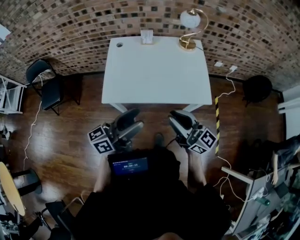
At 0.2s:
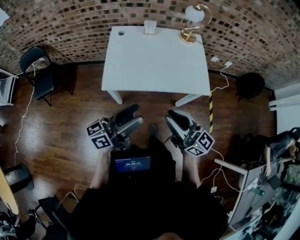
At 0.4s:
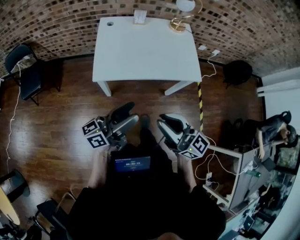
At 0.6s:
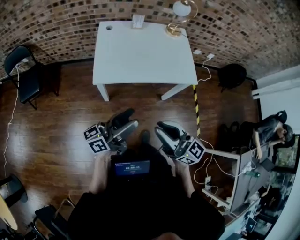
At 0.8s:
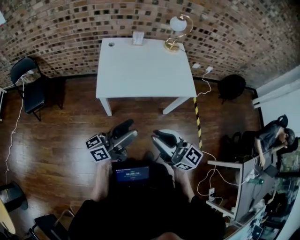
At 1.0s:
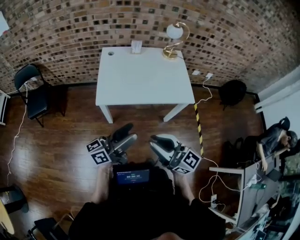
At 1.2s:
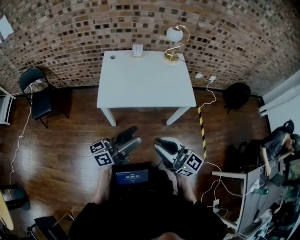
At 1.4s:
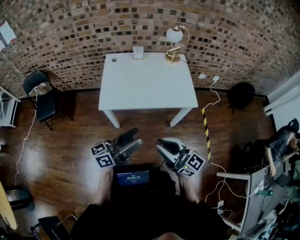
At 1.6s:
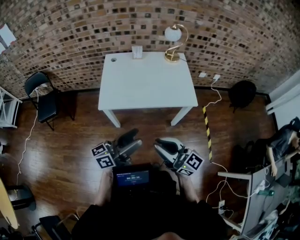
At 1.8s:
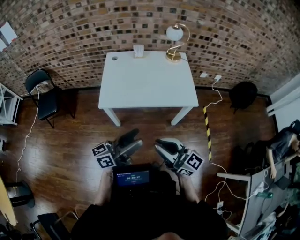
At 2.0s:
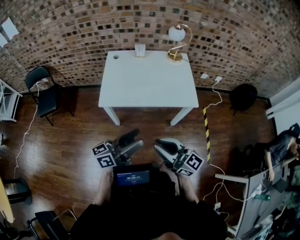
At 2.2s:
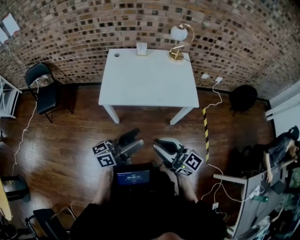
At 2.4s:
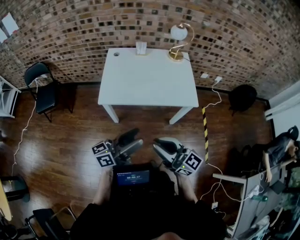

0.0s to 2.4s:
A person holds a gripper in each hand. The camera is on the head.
0.0s to 1.2s: Both grippers move backward, about 15 cm.
1.2s to 2.4s: There are only small adjustments of the grippers.

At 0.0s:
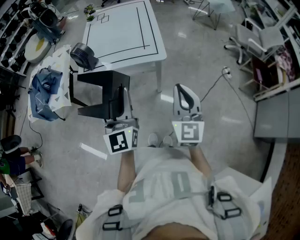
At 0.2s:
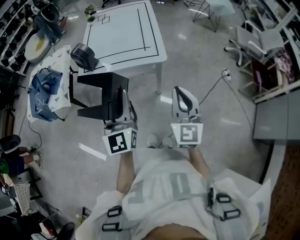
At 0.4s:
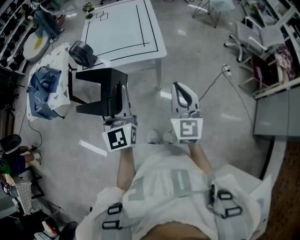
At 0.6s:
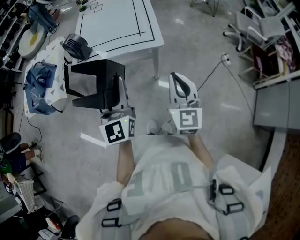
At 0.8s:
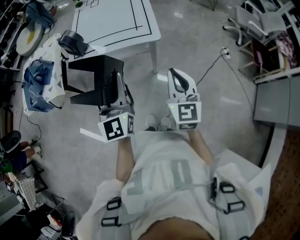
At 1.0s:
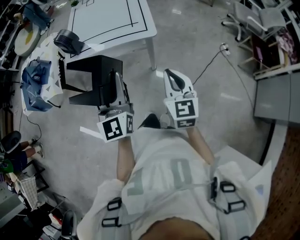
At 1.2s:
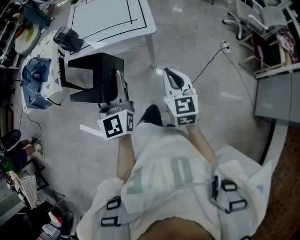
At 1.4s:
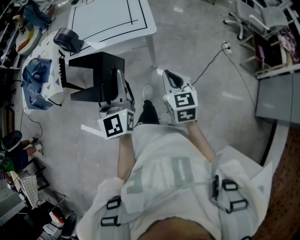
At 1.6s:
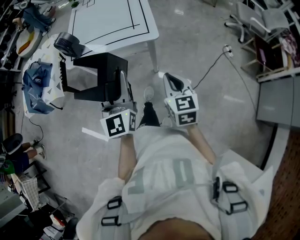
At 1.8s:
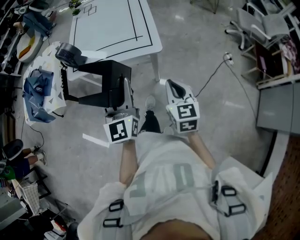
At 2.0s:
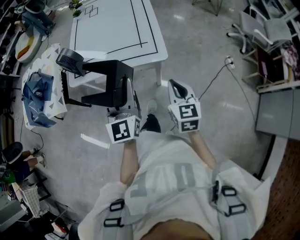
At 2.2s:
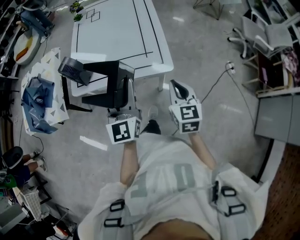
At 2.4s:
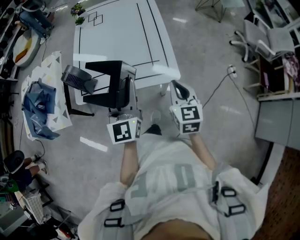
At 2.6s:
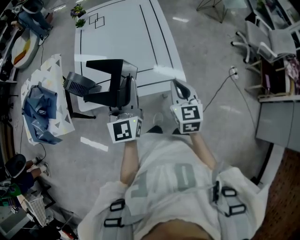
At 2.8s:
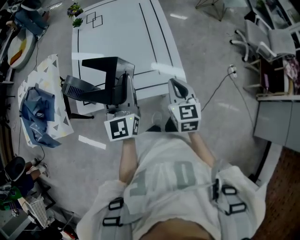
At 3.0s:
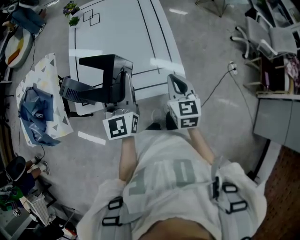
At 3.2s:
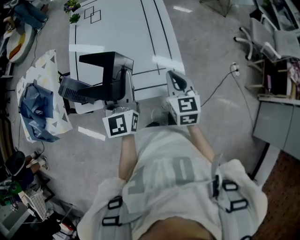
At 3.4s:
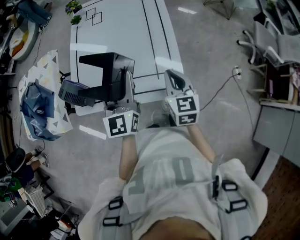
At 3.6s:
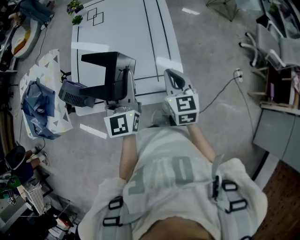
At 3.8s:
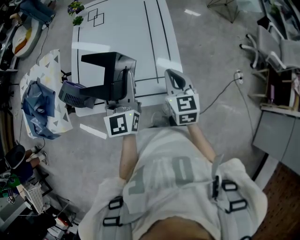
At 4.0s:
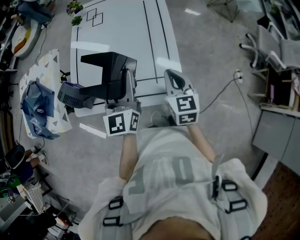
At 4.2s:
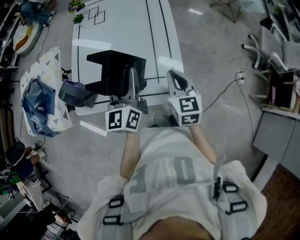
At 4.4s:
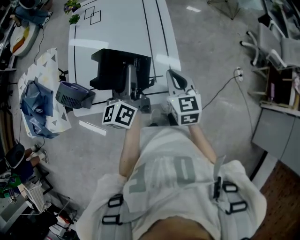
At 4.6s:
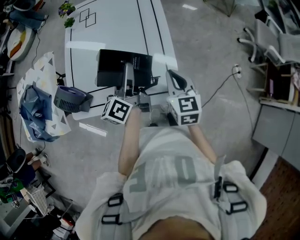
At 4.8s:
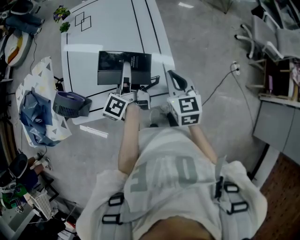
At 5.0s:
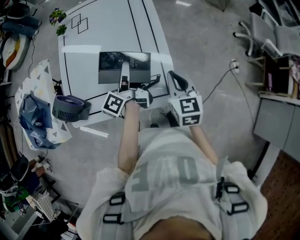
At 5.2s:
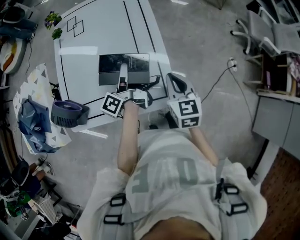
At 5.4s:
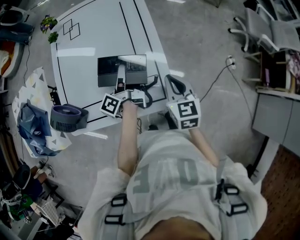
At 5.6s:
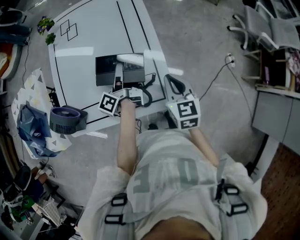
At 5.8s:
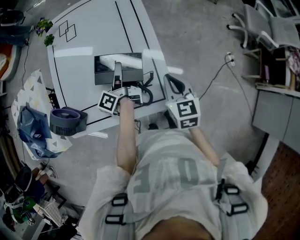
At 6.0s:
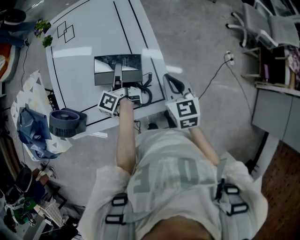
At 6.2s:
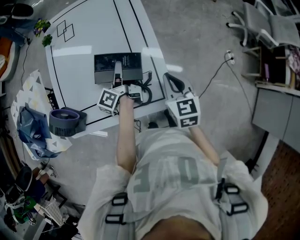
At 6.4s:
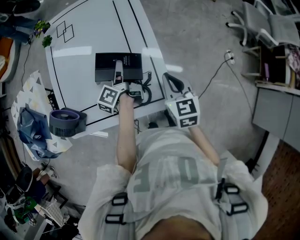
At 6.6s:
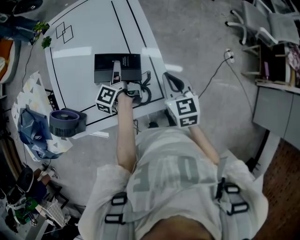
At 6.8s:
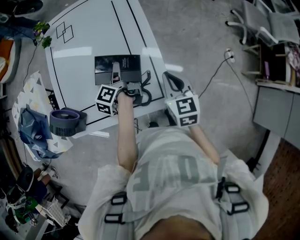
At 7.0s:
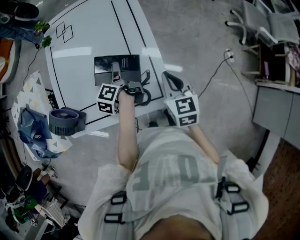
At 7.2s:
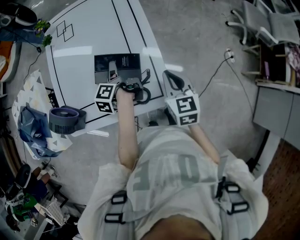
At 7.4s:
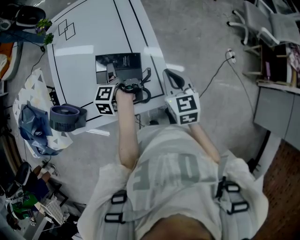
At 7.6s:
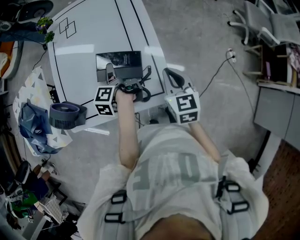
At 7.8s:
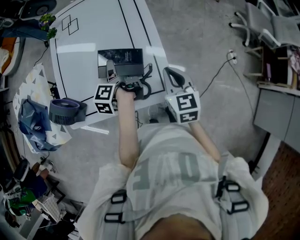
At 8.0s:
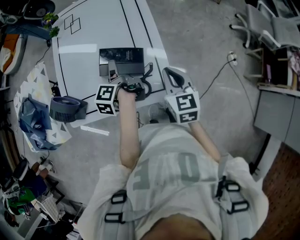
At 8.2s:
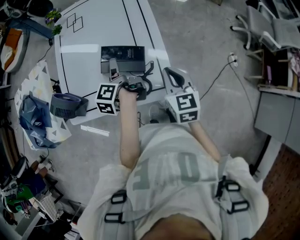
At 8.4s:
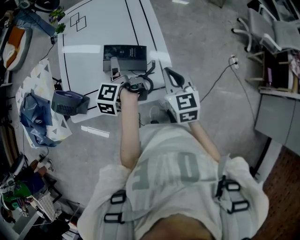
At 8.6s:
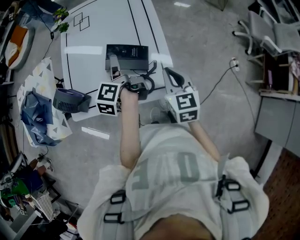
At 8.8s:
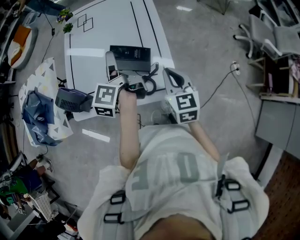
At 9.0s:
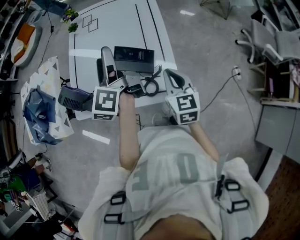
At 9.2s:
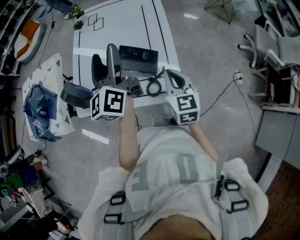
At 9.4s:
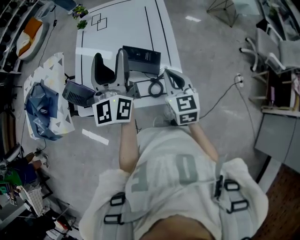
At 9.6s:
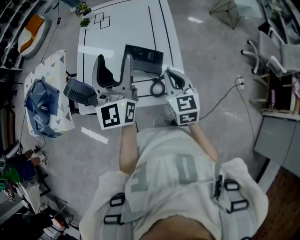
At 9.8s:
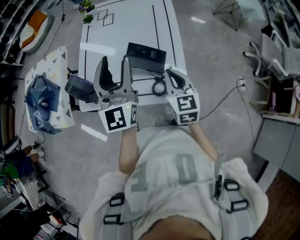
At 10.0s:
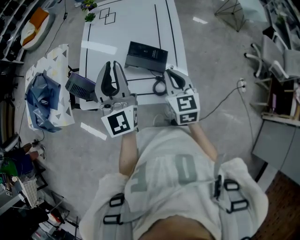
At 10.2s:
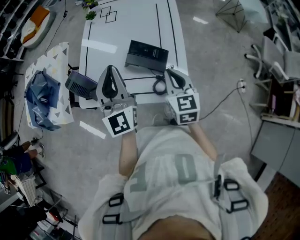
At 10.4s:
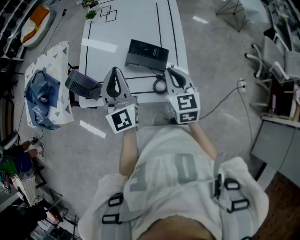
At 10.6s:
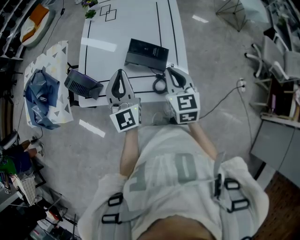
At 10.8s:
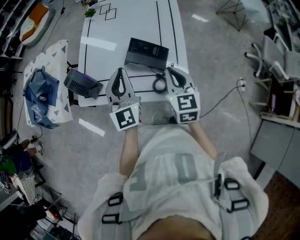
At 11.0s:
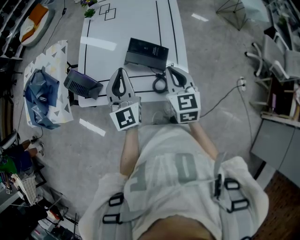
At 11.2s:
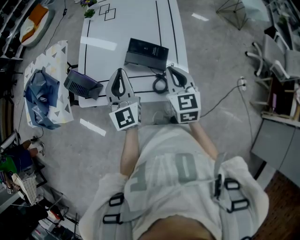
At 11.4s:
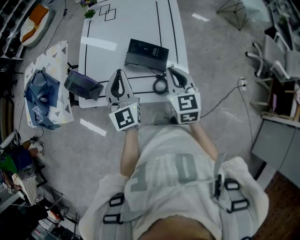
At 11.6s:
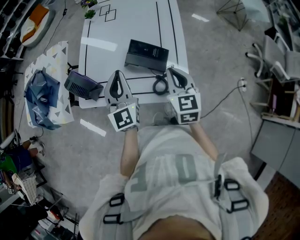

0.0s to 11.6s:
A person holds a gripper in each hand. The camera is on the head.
0.0s to 1.4s: The right gripper goes approximately 10 cm downward, and rotates approximately 30 degrees, while the left gripper shifts by approximately 5 cm.
1.4s to 2.8s: Both grippers move forward, about 35 cm.
2.8s to 4.4s: The right gripper shifts about 10 cm forward; the left gripper shifts some 10 cm forward, to the right and downward, and turns by about 40 degrees.
4.4s to 5.8s: The left gripper travels downward and forward by about 15 cm, and twists some 40 degrees counterclockwise, seen from behind. Meanwhile the right gripper moves about 5 cm.
5.8s to 7.2s: The left gripper changes place by about 5 cm, rotates approximately 30 degrees, and opens its fingers.
7.2s to 8.8s: The left gripper travels upward by some 15 cm, and changes its angle by some 30 degrees. The right gripper changes place by about 5 cm.
8.8s to 10.2s: The left gripper heads upward and backward, covering roughly 10 cm, twists roughly 70 degrees clockwise, seen from behind, and closes up. Meanwhile the right gripper moves to the left, about 5 cm.
10.2s to 11.6s: The left gripper travels downward by some 10 cm.

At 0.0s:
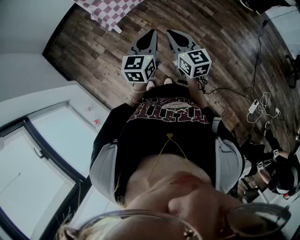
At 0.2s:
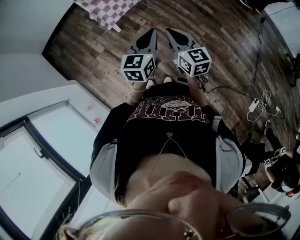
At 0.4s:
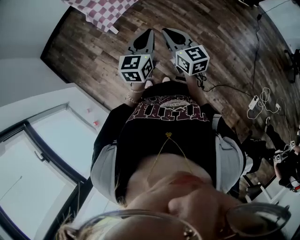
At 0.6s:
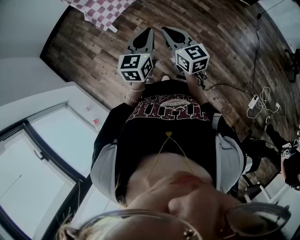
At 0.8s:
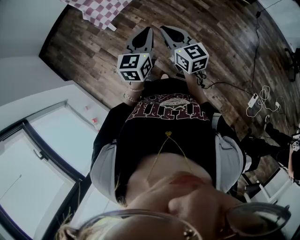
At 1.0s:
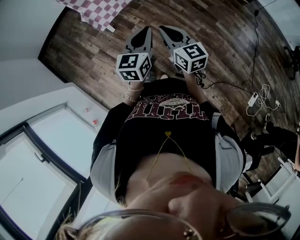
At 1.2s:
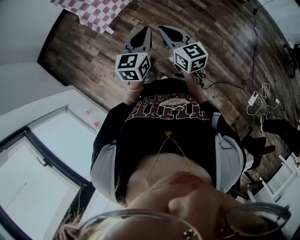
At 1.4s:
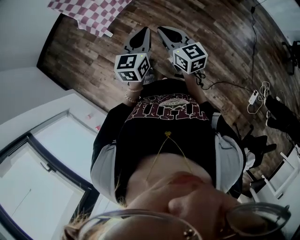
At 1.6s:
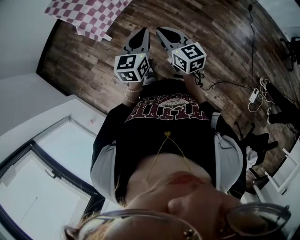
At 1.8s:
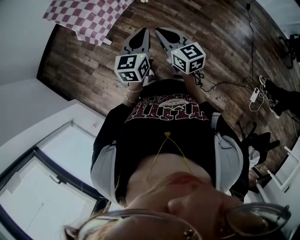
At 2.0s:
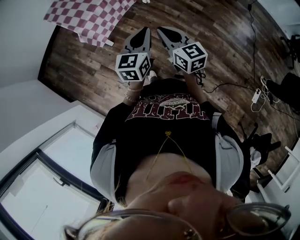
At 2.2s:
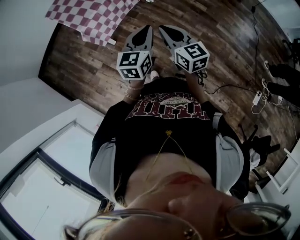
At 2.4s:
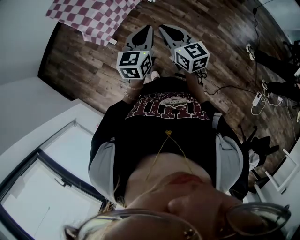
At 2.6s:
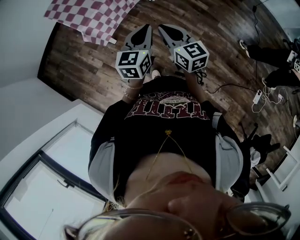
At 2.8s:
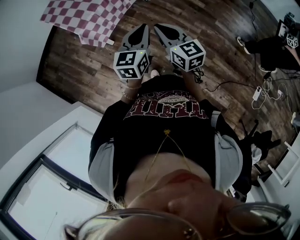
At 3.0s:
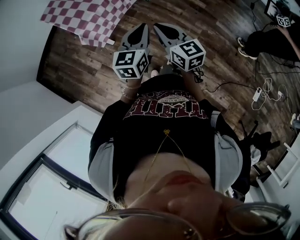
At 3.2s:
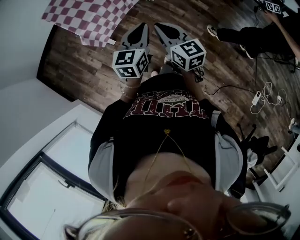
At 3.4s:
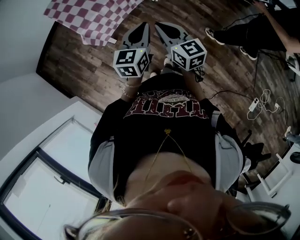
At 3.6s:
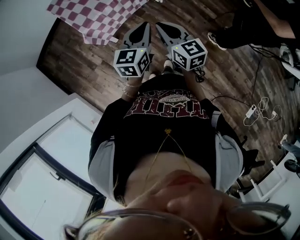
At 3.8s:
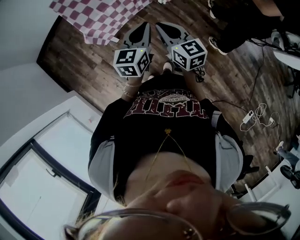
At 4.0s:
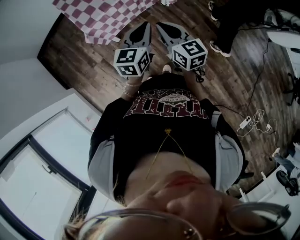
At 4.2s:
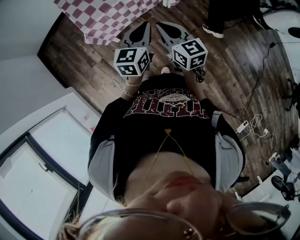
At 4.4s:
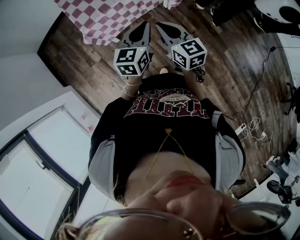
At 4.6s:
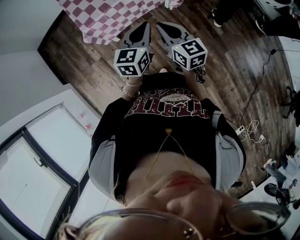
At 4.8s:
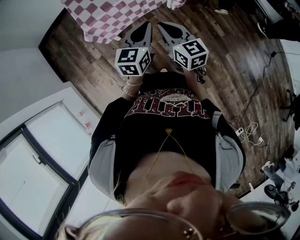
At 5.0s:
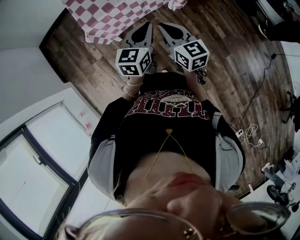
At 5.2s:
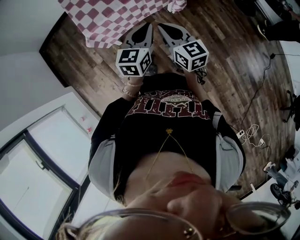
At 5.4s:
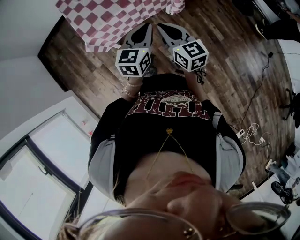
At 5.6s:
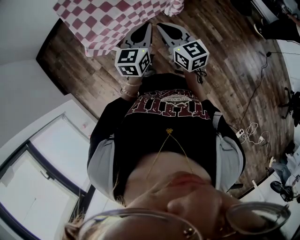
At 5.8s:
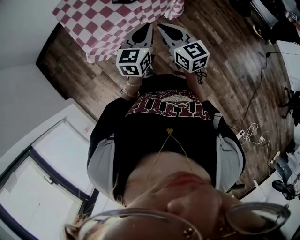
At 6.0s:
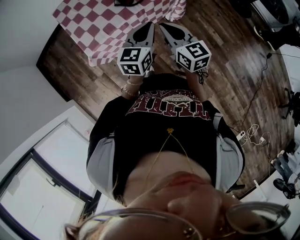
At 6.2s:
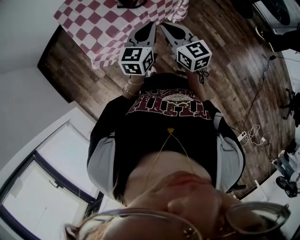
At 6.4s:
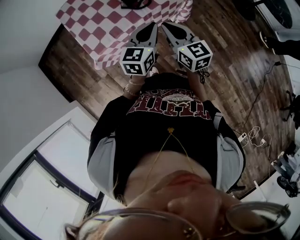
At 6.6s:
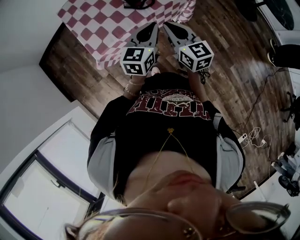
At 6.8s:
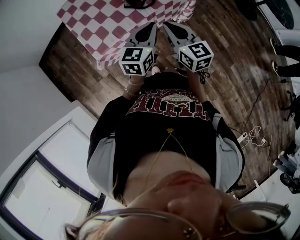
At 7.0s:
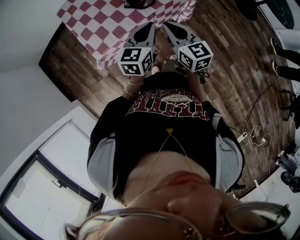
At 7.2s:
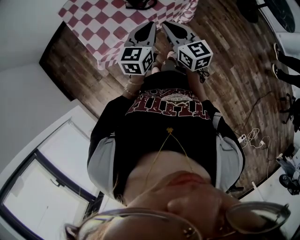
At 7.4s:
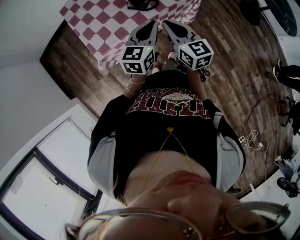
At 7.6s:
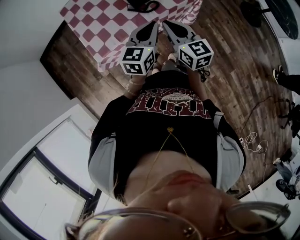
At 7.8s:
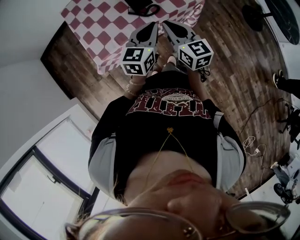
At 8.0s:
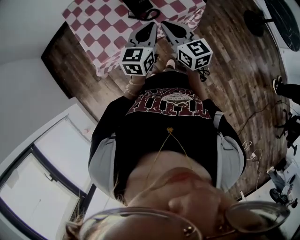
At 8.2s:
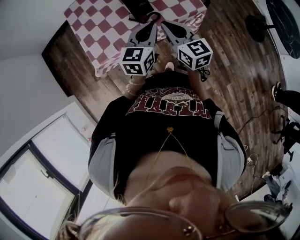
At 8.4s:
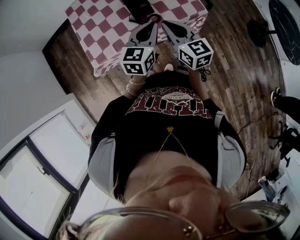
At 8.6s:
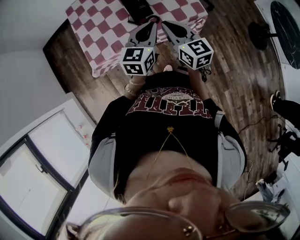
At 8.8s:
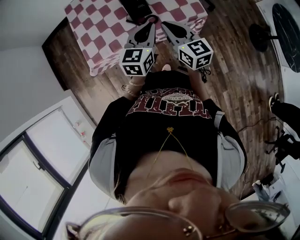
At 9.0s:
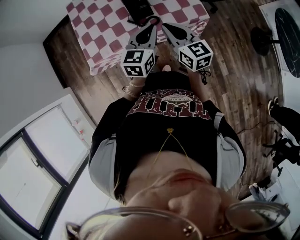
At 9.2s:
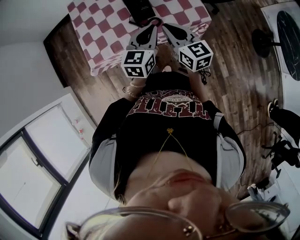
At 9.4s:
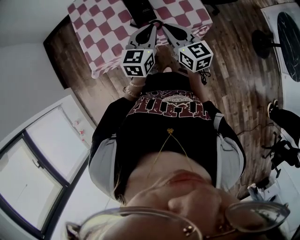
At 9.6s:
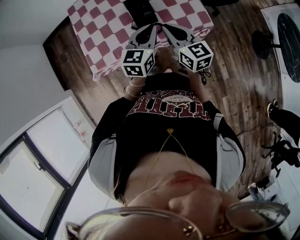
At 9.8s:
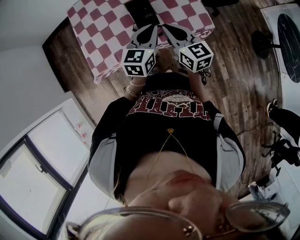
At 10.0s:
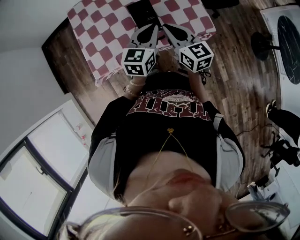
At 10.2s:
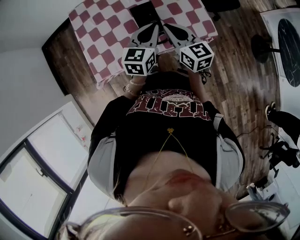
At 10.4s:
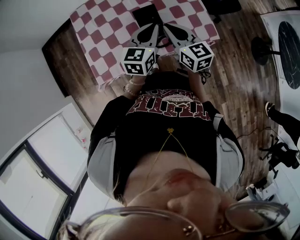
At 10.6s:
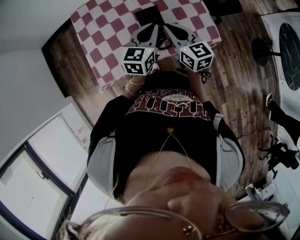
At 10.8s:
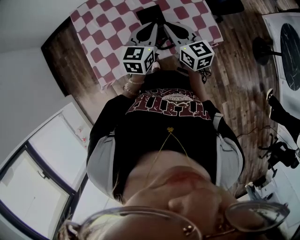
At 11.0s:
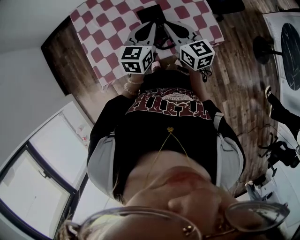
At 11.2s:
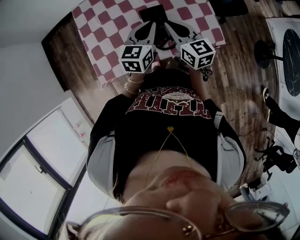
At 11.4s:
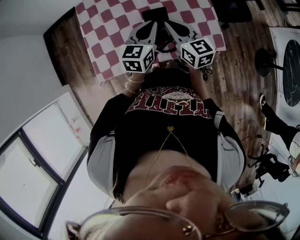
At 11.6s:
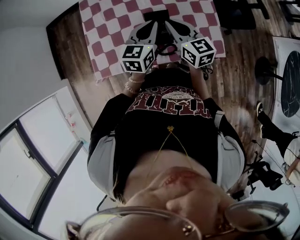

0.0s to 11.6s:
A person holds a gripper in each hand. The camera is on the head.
0.0s to 1.4s: The left gripper moves forward, about 5 cm. The right gripper shifts by roughly 5 cm.
1.4s to 2.8s: Both grippers travel together forward and to the left, about 15 cm.
2.8s to 4.4s: The two grippers go some 15 cm forward.
4.4s to 5.8s: The two grippers go about 15 cm forward.
5.8s to 7.2s: The left gripper goes about 10 cm forward and to the left. Meanwhile the right gripper heads forward, covering some 10 cm.
7.2s to 8.8s: The two grippers go roughly 15 cm forward and to the right.
8.8s to 10.2s: Both grippers move forward, approximately 10 cm.
10.2s to 11.6s: Both grippers travel together forward, about 10 cm.
